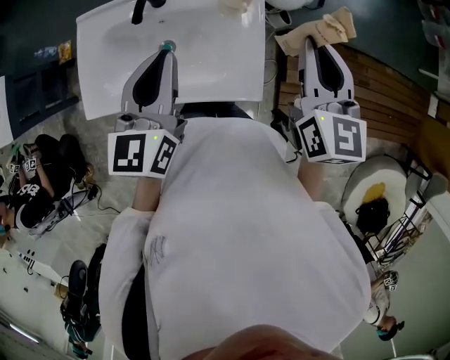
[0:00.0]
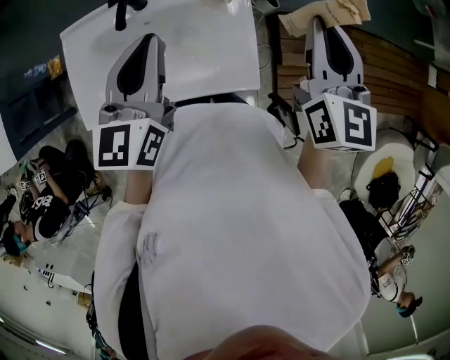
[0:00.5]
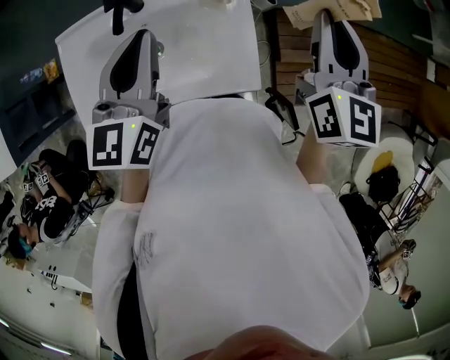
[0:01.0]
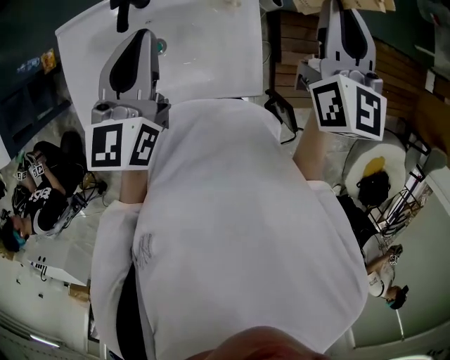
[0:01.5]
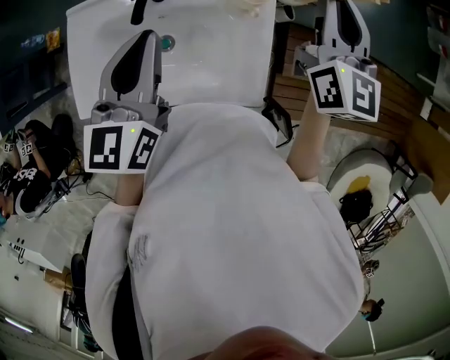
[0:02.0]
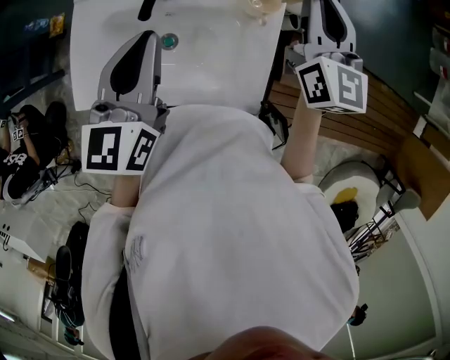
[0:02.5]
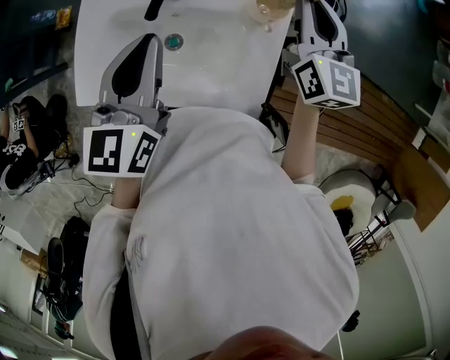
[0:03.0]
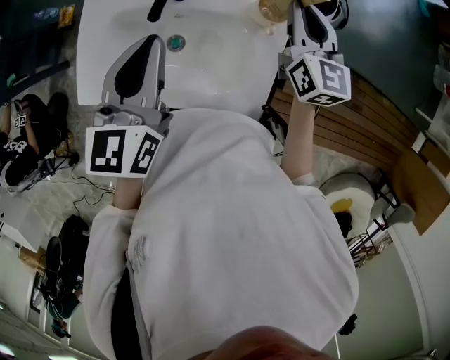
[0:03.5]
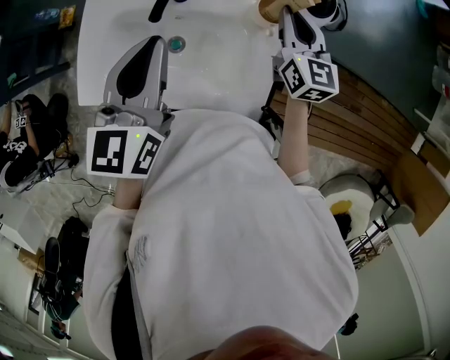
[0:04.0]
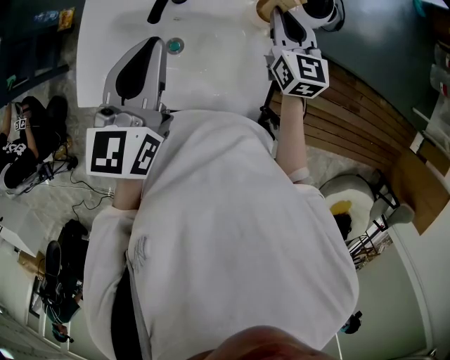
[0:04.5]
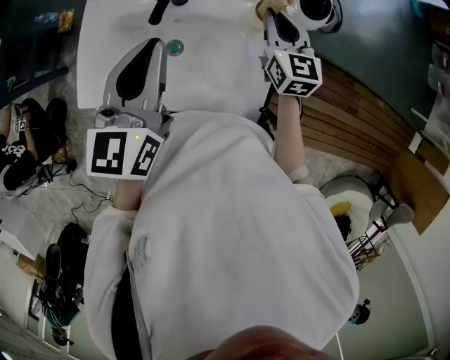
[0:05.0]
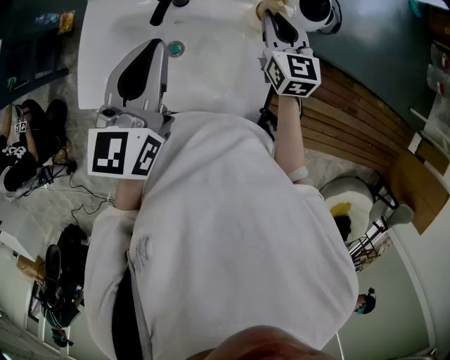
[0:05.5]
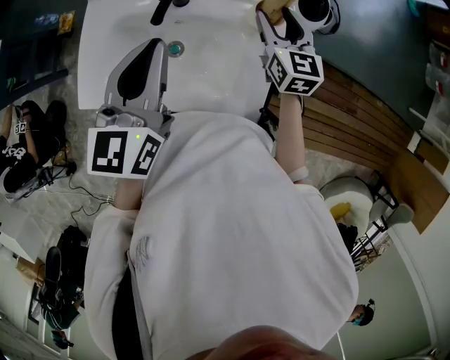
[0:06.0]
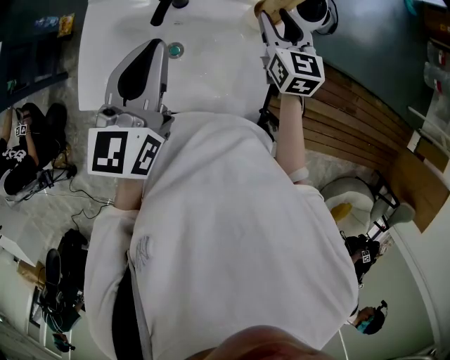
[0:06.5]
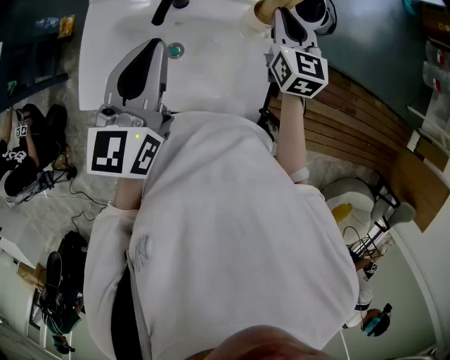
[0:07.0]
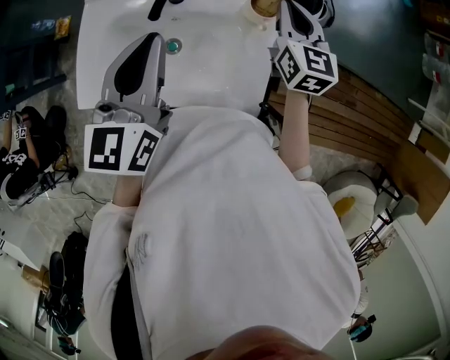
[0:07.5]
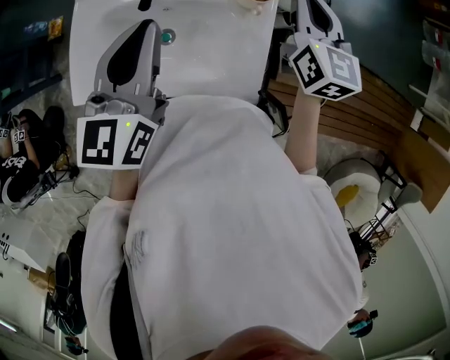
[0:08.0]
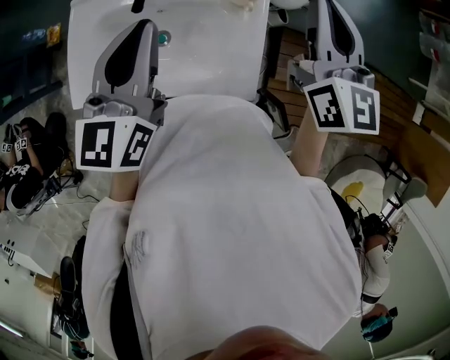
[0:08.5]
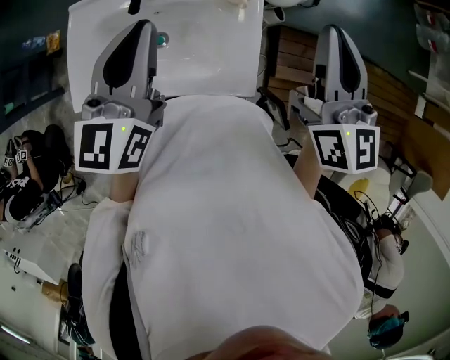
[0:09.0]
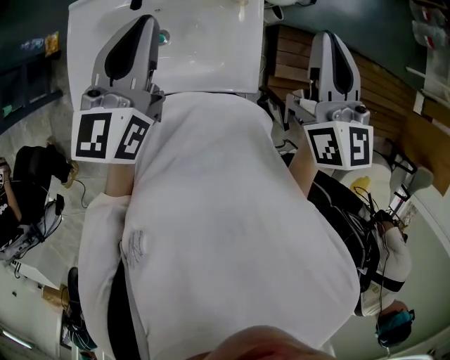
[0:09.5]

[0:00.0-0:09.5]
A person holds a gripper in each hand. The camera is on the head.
0:00.0 to 0:02.0: The right gripper is displaced forward by roughly 15 cm. Meanwhile the left gripper moves forward, roughly 5 cm.
0:02.0 to 0:04.0: The right gripper moves downward, roughly 15 cm.
0:04.0 to 0:05.5: The grippers make only small movements.
0:05.5 to 0:07.5: The right gripper shifts about 5 cm upward, and opens, then closes again.
0:07.5 to 0:09.5: The right gripper heads backward and upward, covering some 20 cm.

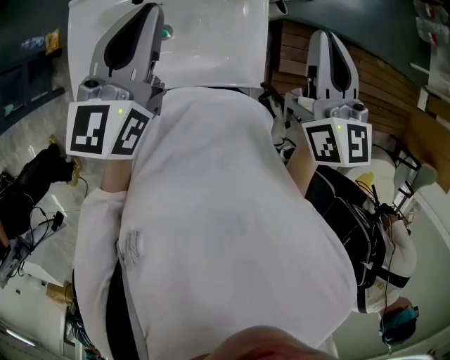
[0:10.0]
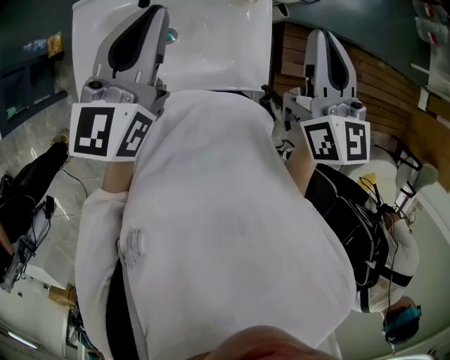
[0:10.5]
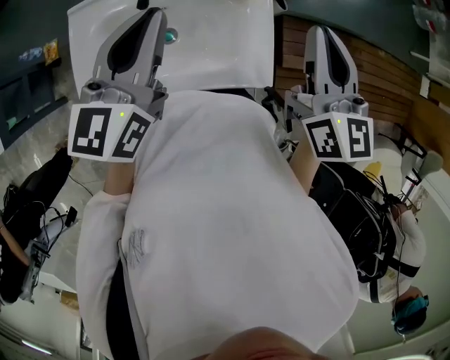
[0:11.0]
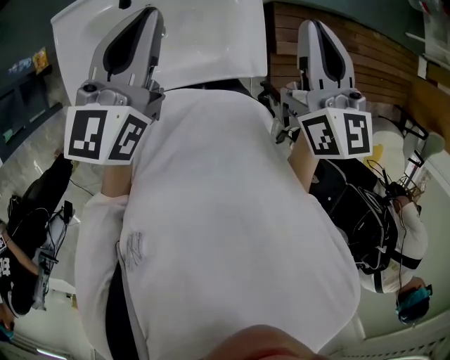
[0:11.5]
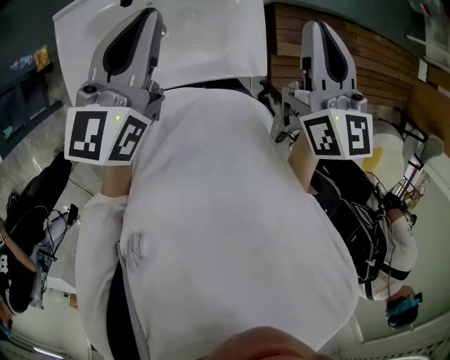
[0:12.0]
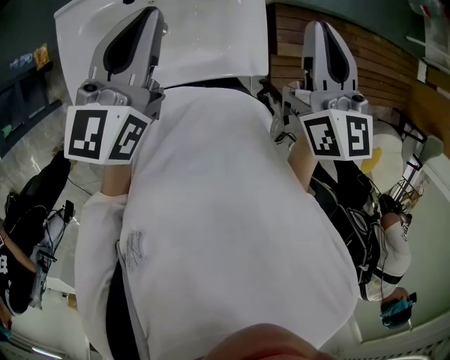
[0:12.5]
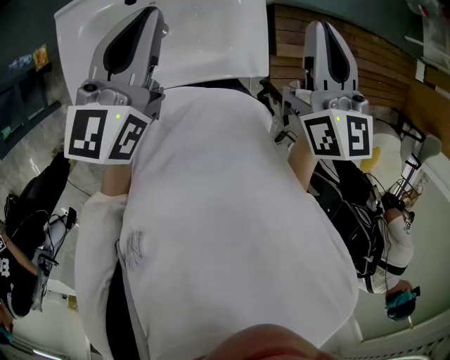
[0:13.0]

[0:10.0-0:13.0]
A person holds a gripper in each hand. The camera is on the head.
0:10.0 to 0:13.0: The grippers move only a little.

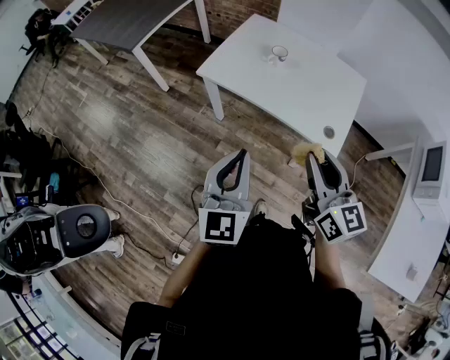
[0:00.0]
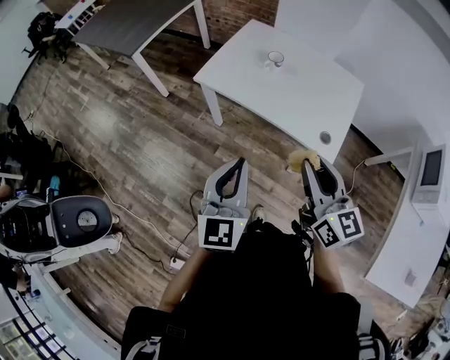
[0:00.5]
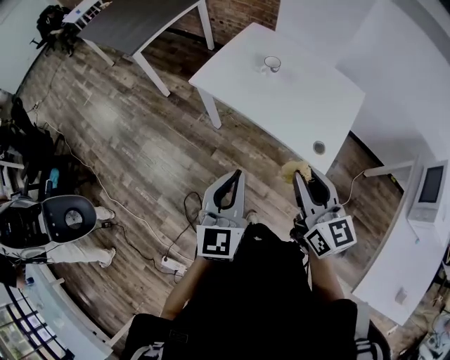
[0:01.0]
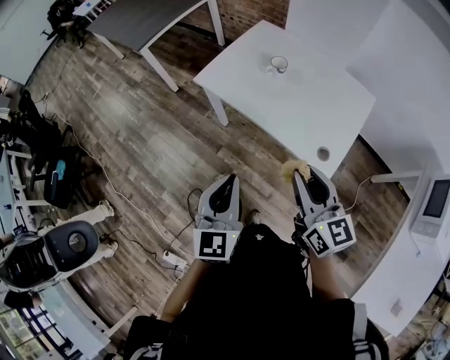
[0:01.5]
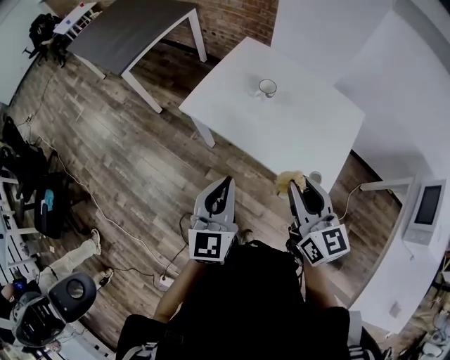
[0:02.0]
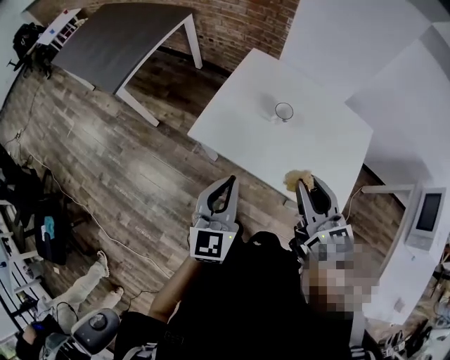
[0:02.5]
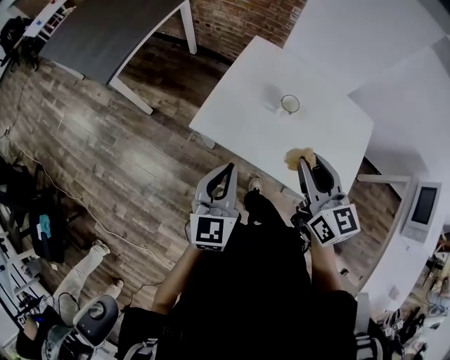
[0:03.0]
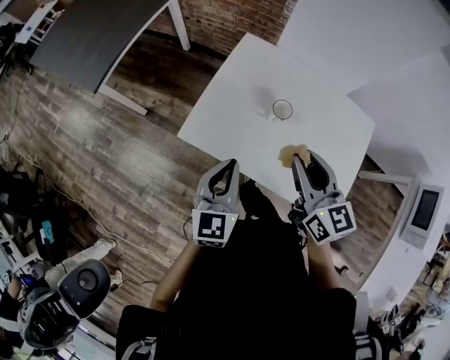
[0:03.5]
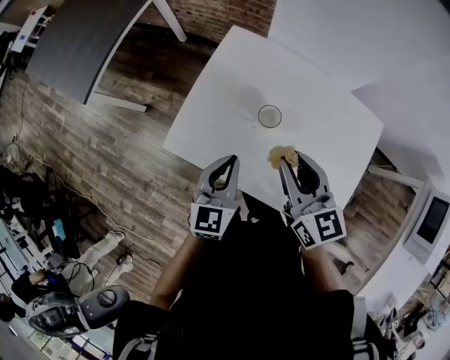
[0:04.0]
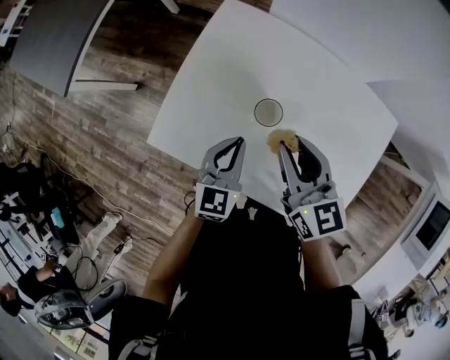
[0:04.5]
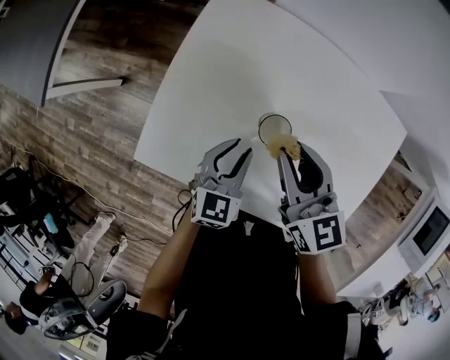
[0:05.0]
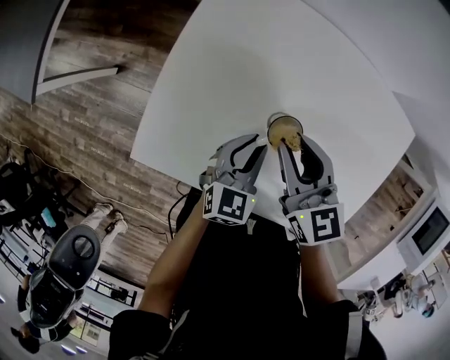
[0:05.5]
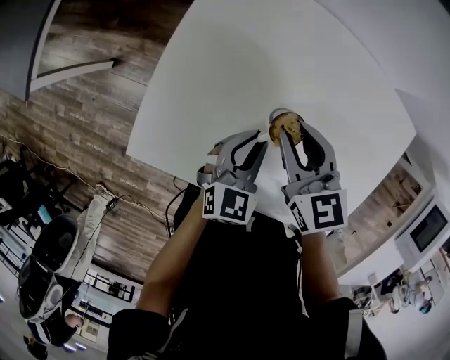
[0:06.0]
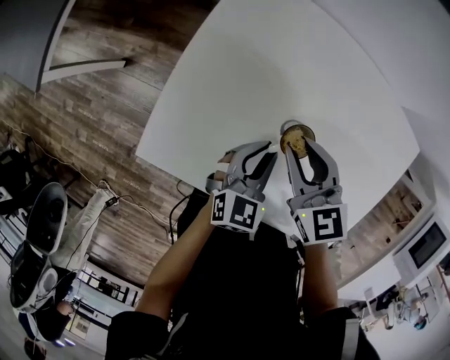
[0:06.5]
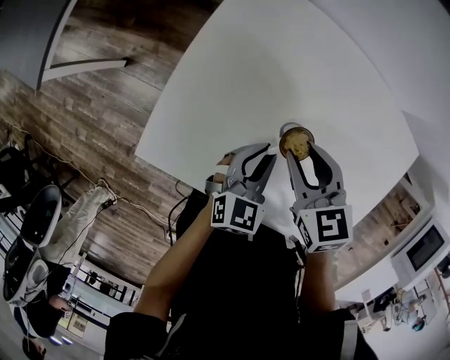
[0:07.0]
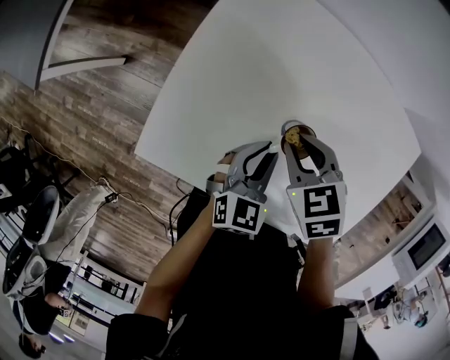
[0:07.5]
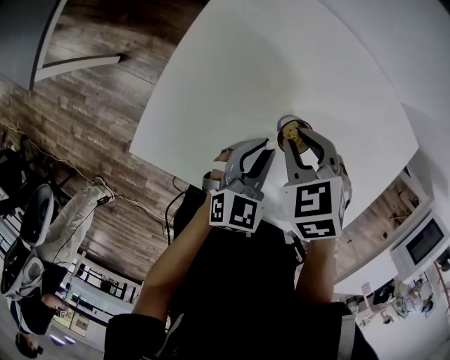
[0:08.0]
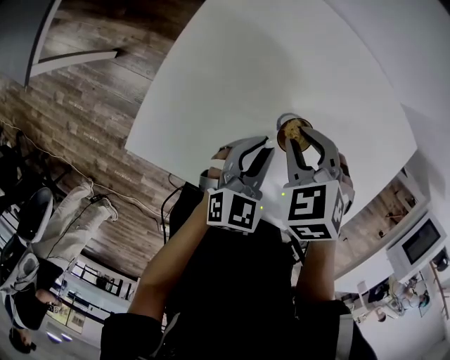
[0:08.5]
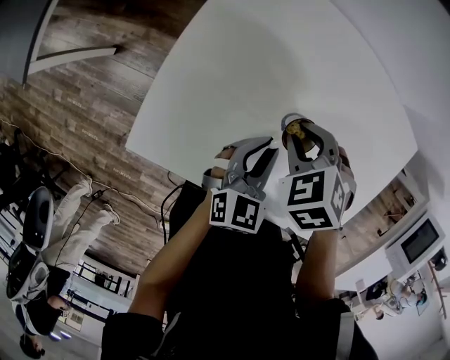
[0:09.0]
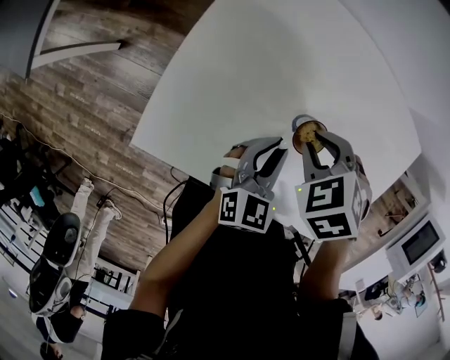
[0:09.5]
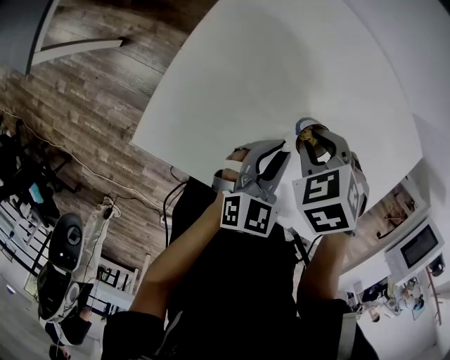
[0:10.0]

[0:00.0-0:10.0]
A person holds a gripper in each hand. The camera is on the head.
0:00.0 to 0:02.0: The left gripper goes roughly 15 cm forward, to the right and downward; the right gripper heads forward and to the right, covering some 15 cm.
0:02.0 to 0:04.0: The two grippers go about 30 cm forward.
0:04.0 to 0:06.0: Both grippers move downward and forward, approximately 20 cm. The left gripper turns by about 20 degrees.
0:06.0 to 0:08.0: The right gripper angles its fingers downward, by roughly 30 degrees.
0:08.0 to 0:10.0: There are only small adjustments of the grippers.

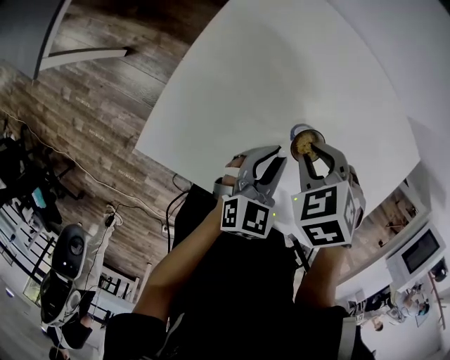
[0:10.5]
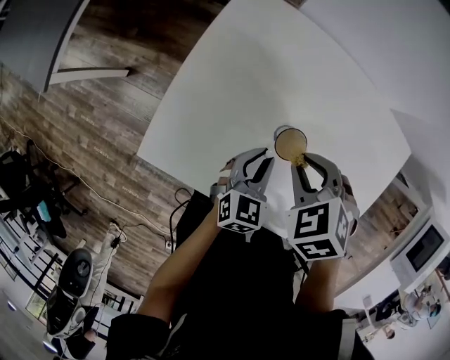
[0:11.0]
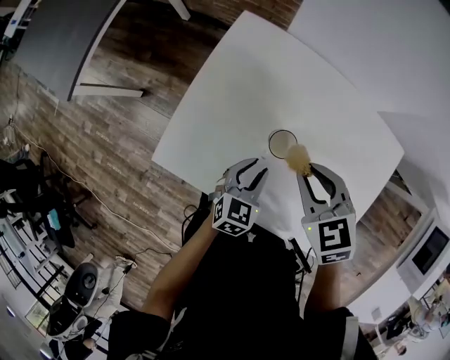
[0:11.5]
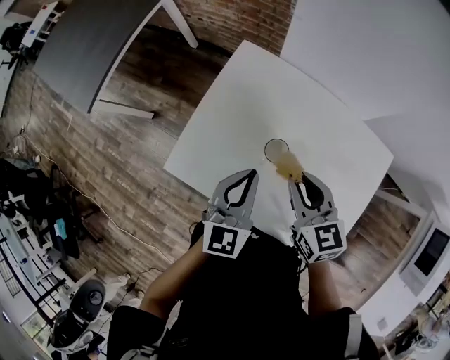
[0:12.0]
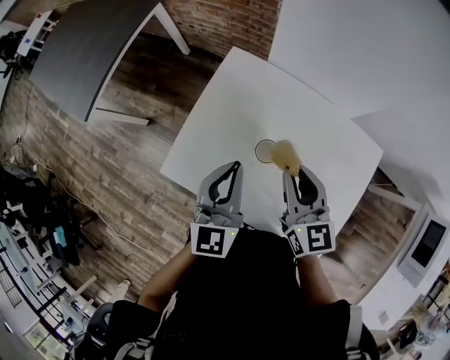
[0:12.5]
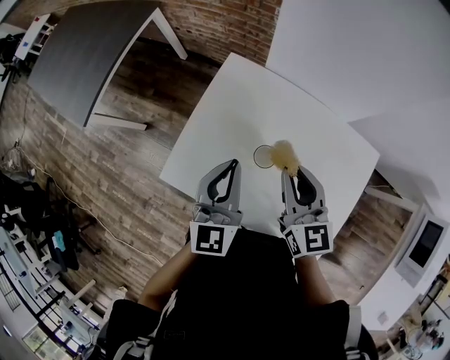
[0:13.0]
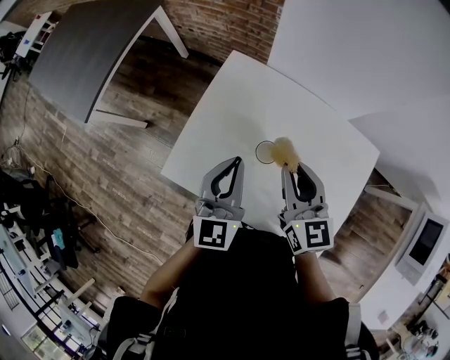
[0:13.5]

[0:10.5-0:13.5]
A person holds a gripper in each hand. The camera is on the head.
0:10.5 to 0:12.0: Both grippers travel together upward, approximately 15 cm. The left gripper turns by approximately 20 degrees, while the right gripper angles its fingers upward, by some 50 degrees.
0:12.0 to 0:13.5: Both grippers travel together upward, about 5 cm.

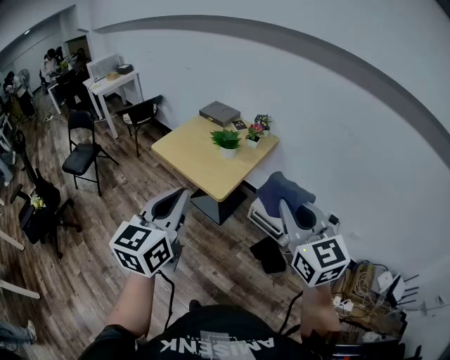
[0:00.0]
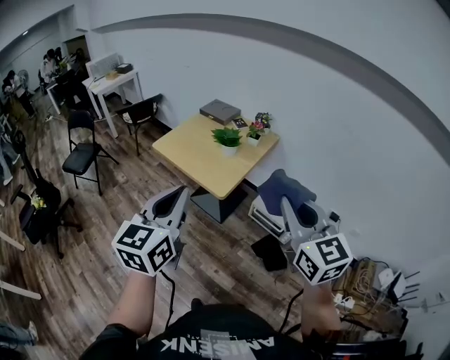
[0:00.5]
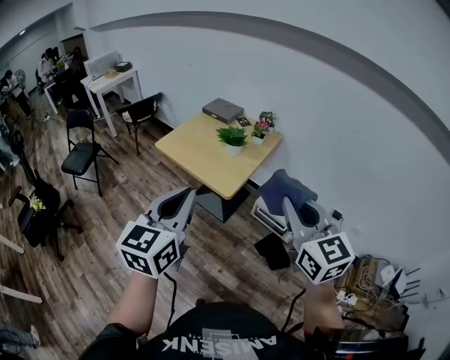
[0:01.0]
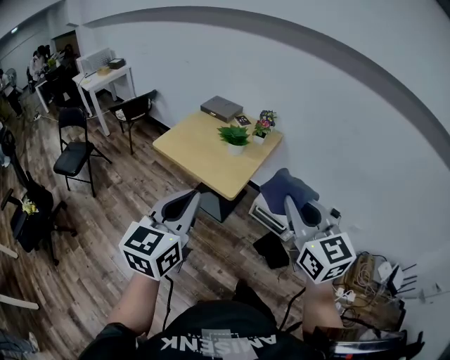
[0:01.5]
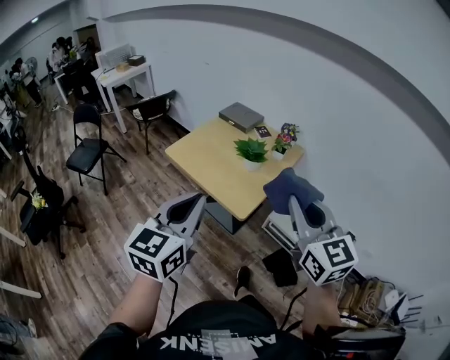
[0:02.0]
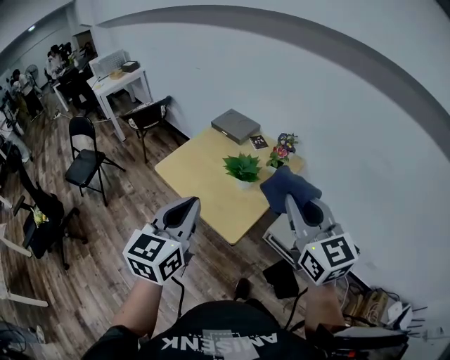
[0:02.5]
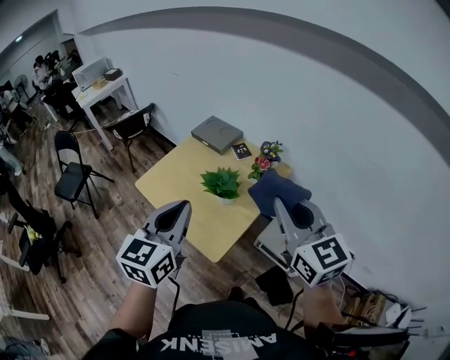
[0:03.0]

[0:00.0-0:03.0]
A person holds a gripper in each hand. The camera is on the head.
0:00.0 to 0:01.5: The grippers both shift to the left by about 5 cm.
0:01.5 to 0:03.0: Both grippers move forward, about 35 cm.
